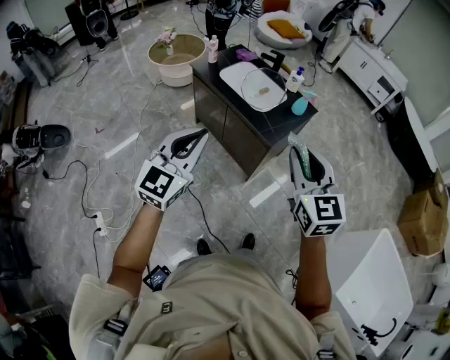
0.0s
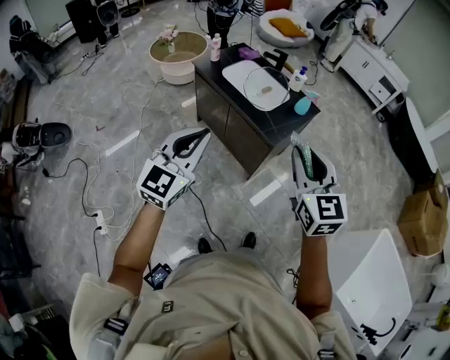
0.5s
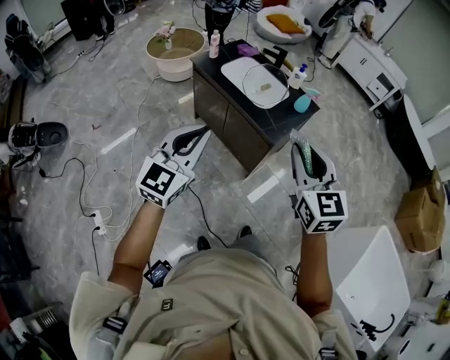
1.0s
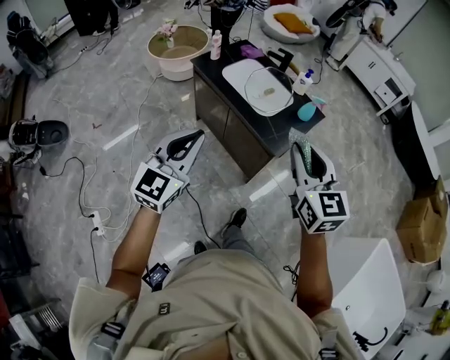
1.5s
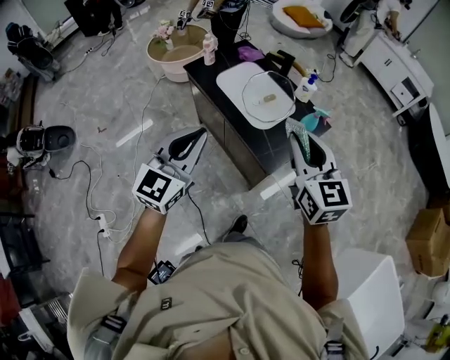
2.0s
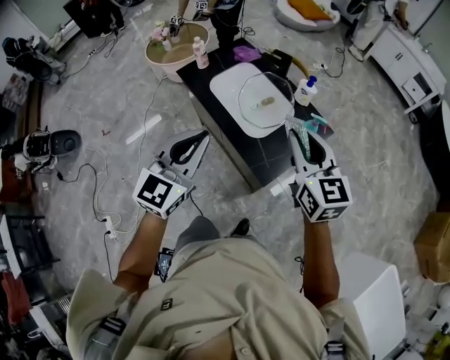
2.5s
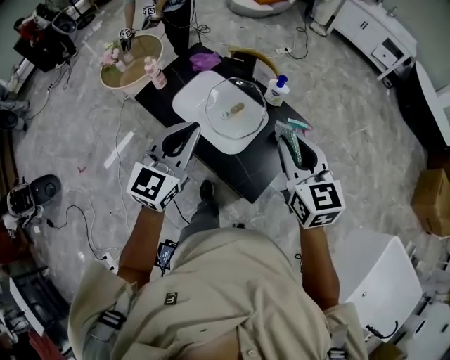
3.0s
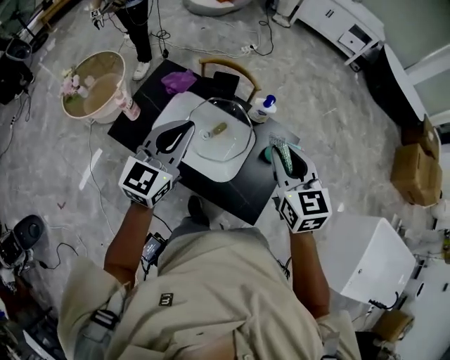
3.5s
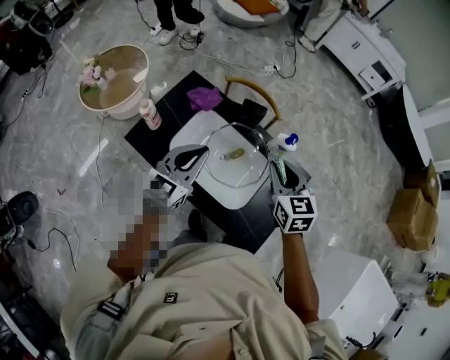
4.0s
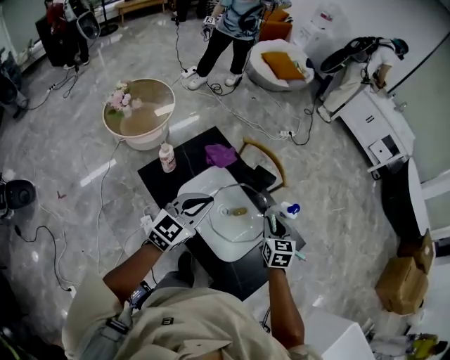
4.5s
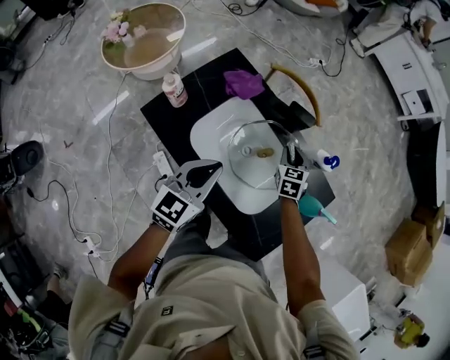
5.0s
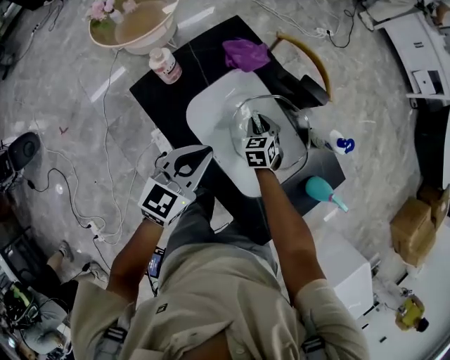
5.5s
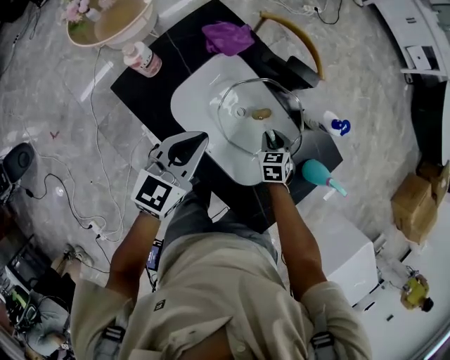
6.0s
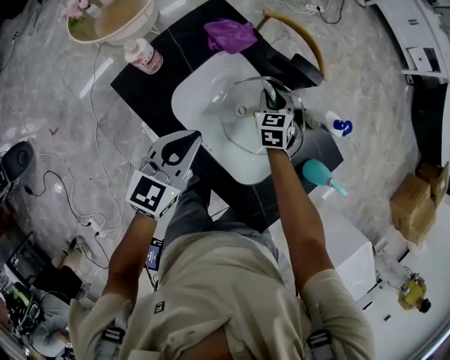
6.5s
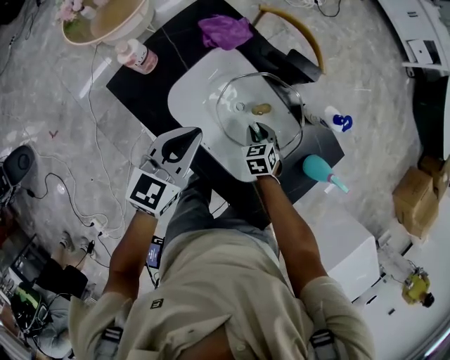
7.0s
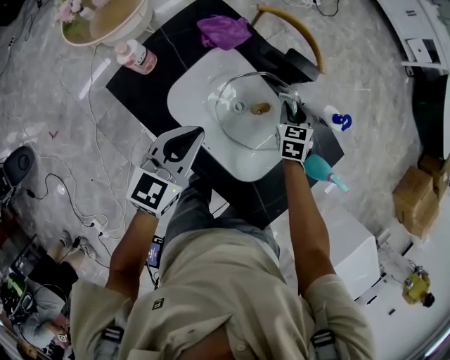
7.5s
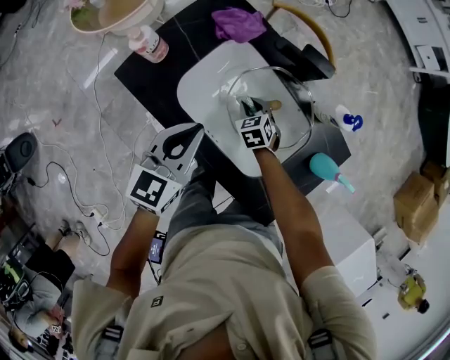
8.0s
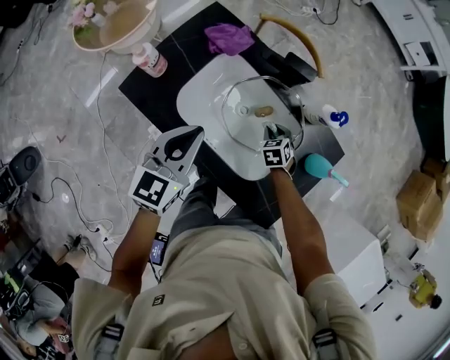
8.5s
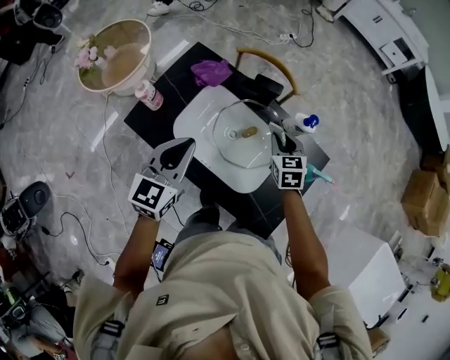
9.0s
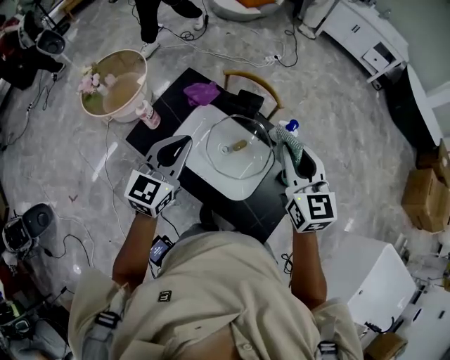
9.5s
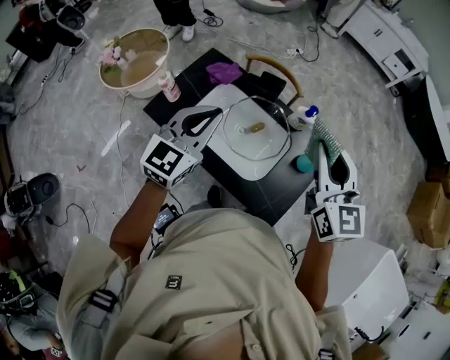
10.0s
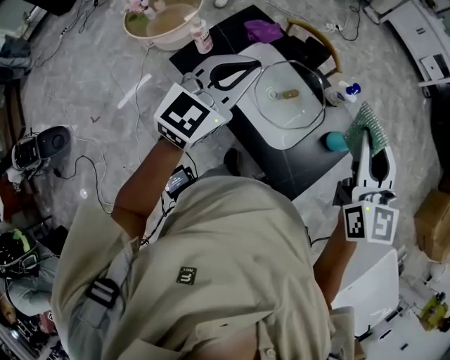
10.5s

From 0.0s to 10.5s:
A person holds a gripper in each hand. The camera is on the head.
From 0.0s to 2.0s: The grippers both shift forward by about 25 cm.
From 2.0s to 4.0s: The right gripper goes about 40 cm forward and downward, and turns by about 30 degrees; the left gripper is displaced forward by about 50 cm, and turns by approximately 30 degrees.
From 4.0s to 6.5s: The right gripper shifts about 35 cm downward and forward, and swivels approximately 20 degrees; the left gripper is displaced downward by roughly 15 cm.
From 6.5s to 8.5s: The right gripper moves left and right over roughly 15 cm, changing direction 2 times.
From 8.5s to 10.5s: The left gripper travels upward by roughly 20 cm, and turns by about 20 degrees, while the right gripper shifts some 50 cm upward, and tilts its fingers some 60 degrees upward.

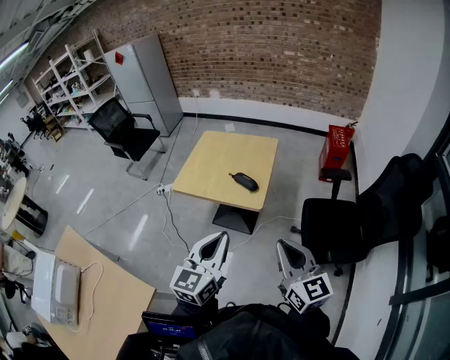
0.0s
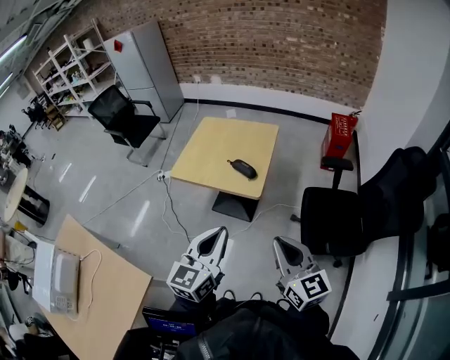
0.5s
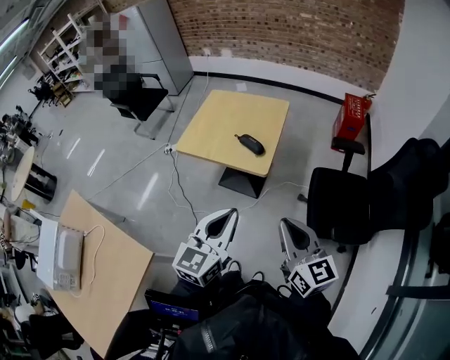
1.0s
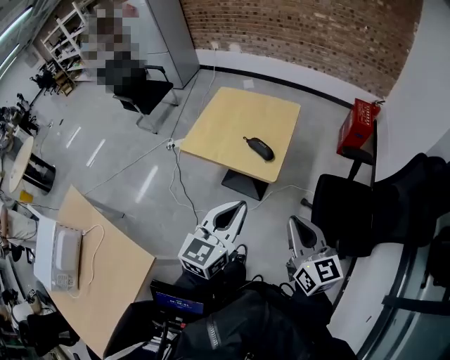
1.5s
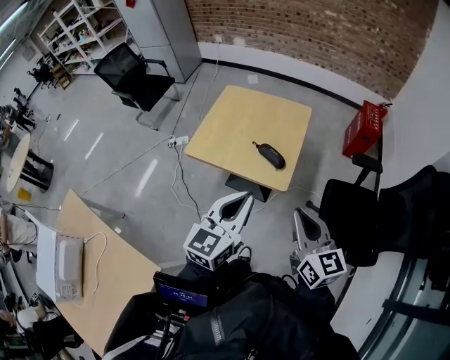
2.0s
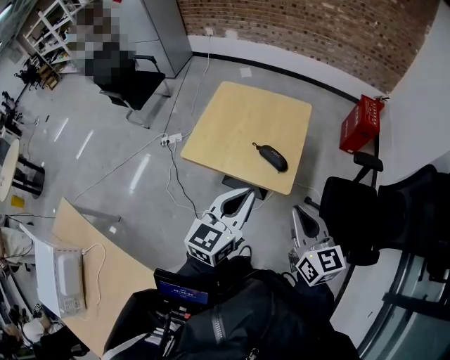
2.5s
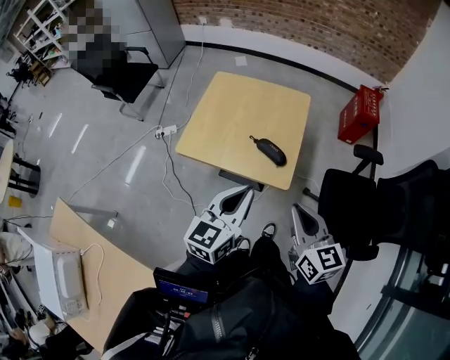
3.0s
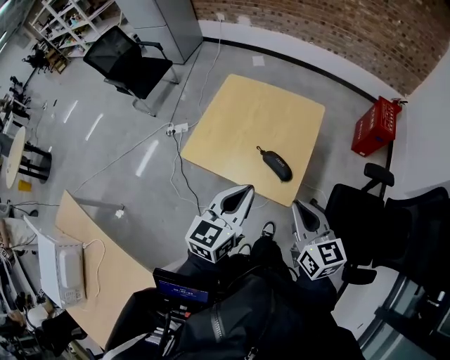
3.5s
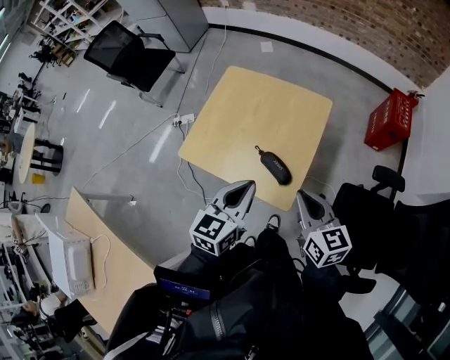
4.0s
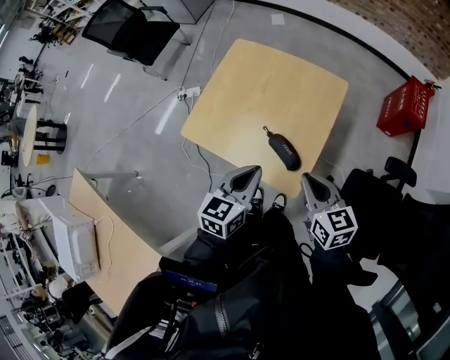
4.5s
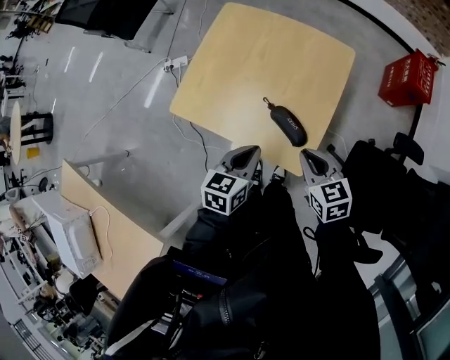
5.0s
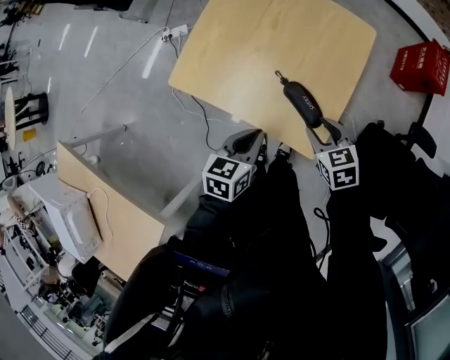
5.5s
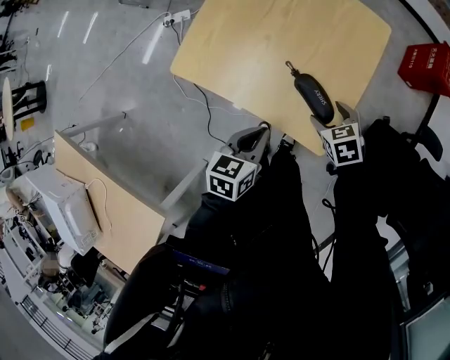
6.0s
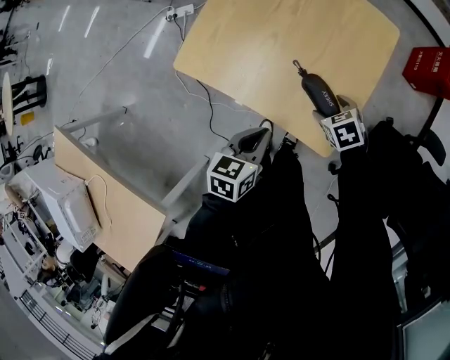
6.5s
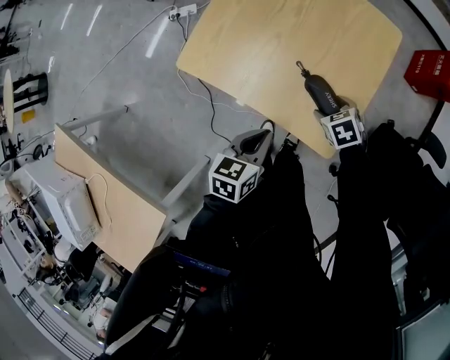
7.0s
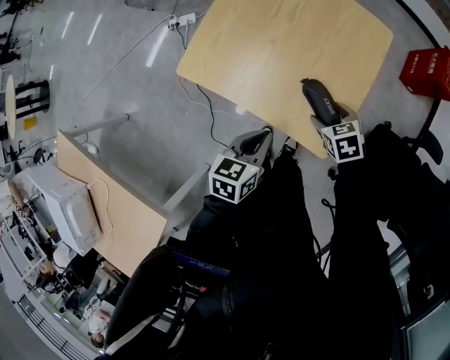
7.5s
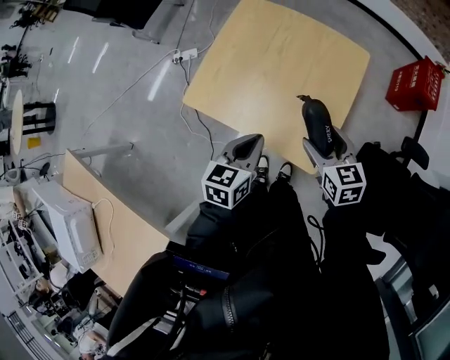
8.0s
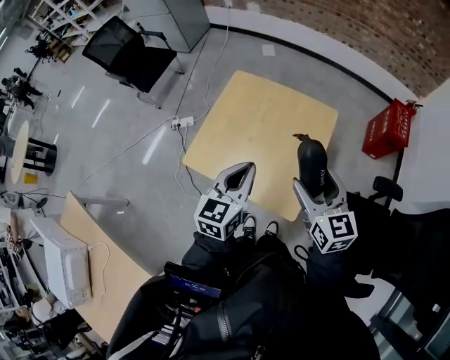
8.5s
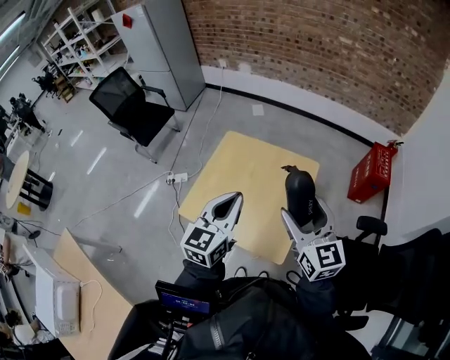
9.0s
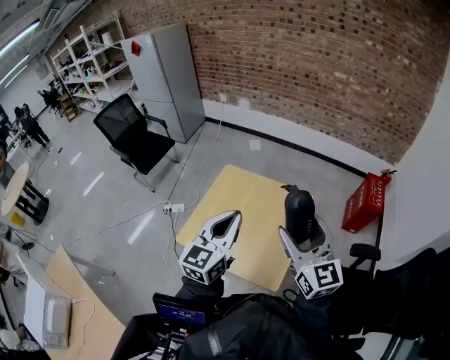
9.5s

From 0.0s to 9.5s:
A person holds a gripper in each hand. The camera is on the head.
From 0.0s to 2.0s: The two grippers go roughly 15 cm forward.
From 2.0s to 4.0s: The right gripper travels forward by roughly 25 cm, while the left gripper goes roughly 25 cm forward and downward.
From 4.0s to 5.5s: Both grippers move downward, approximately 20 cm. The left gripper rotates roughly 30 degrees; the right gripper tilts its fingers about 30 degrees downward, and opens.
From 5.5s to 7.5s: The right gripper is displaced downward by about 5 cm, and opens.
From 7.5s to 9.5s: Both grippers travel together upward, approximately 40 cm. The left gripper tips its fingers upward by about 40 degrees, while the right gripper points its fingers about 60 degrees further upward.

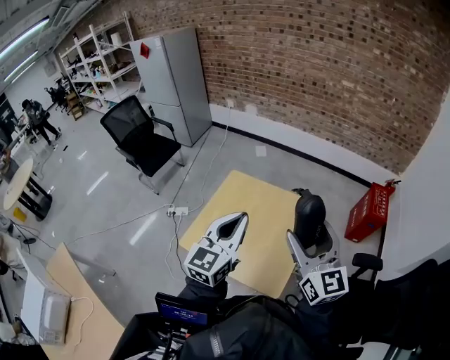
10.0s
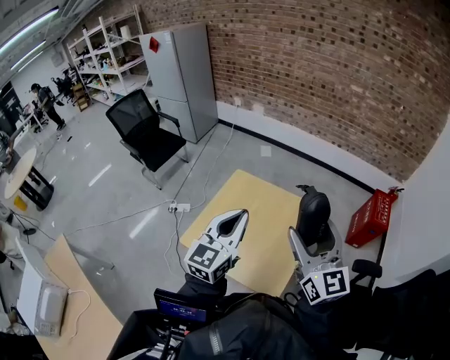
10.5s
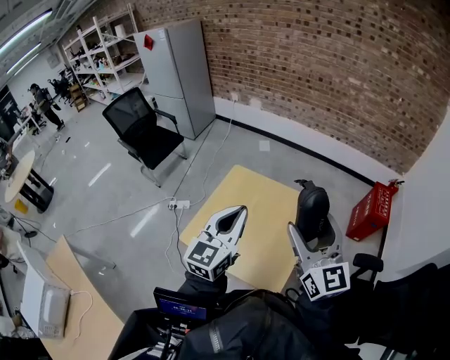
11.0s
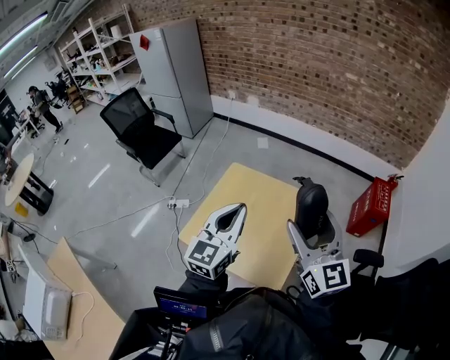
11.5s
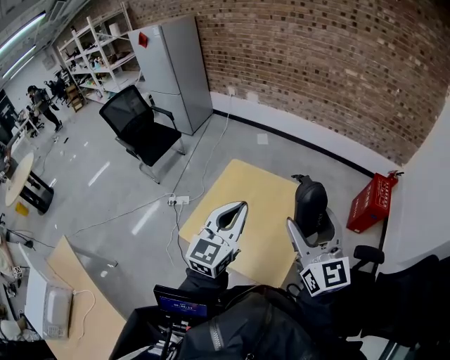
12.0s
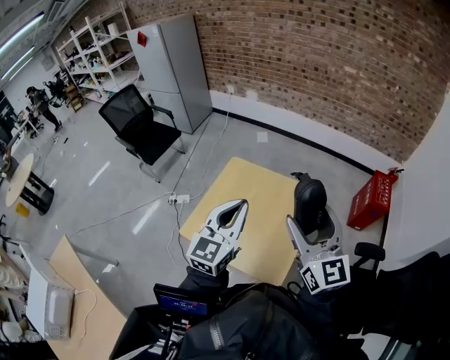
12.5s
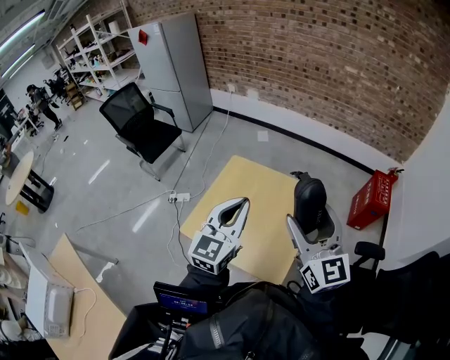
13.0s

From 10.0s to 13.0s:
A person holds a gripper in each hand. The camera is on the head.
From 10.0s to 11.5s: The grippers make only small movements.
From 11.5s to 13.0s: Both grippers stay put.

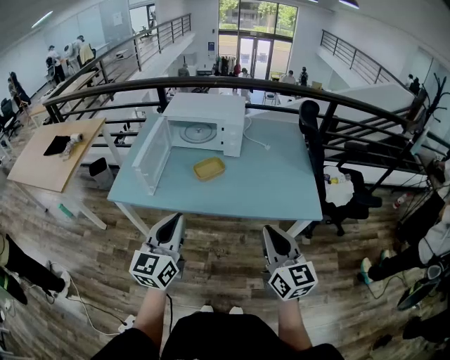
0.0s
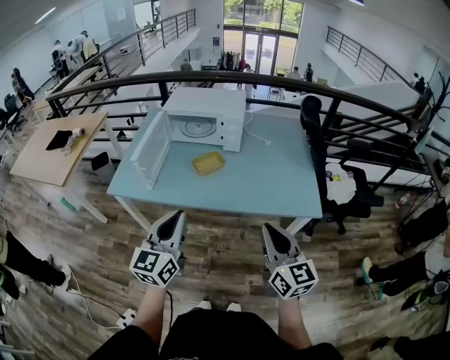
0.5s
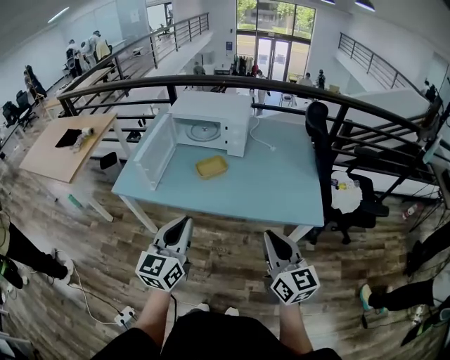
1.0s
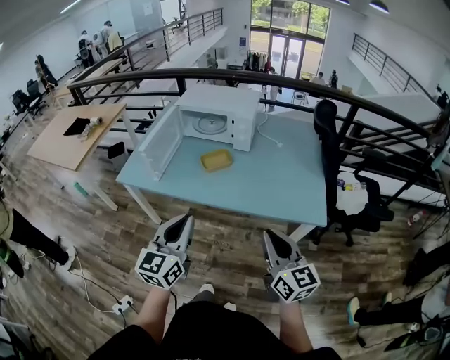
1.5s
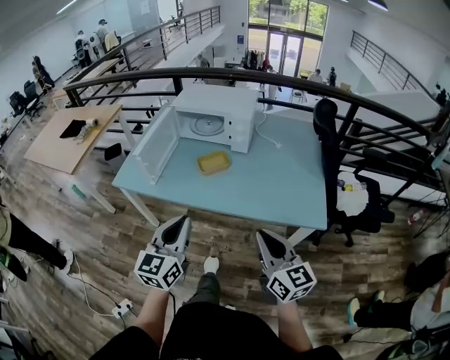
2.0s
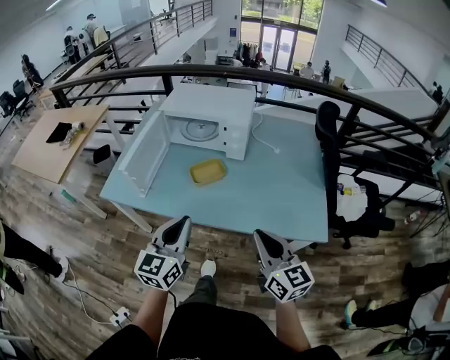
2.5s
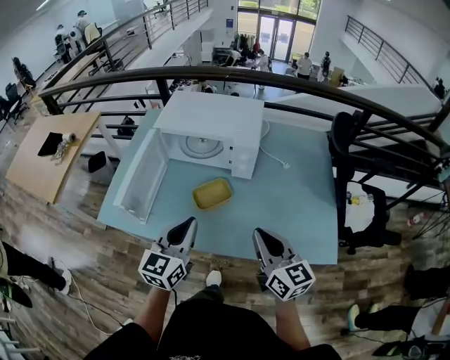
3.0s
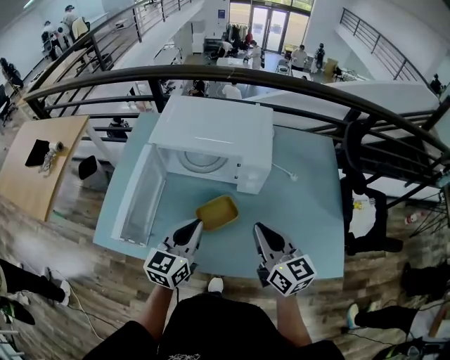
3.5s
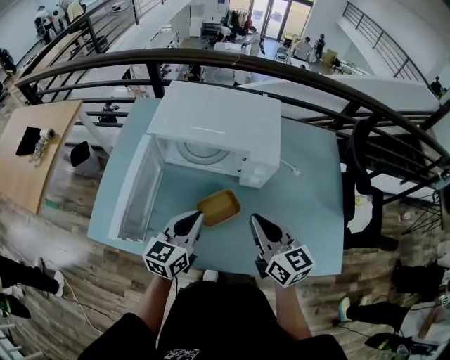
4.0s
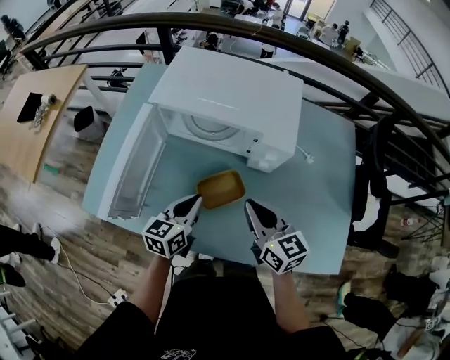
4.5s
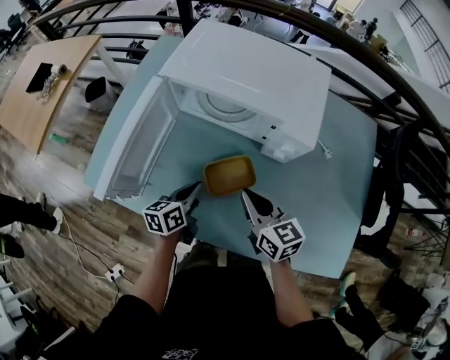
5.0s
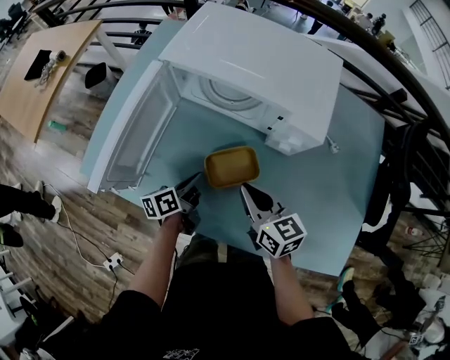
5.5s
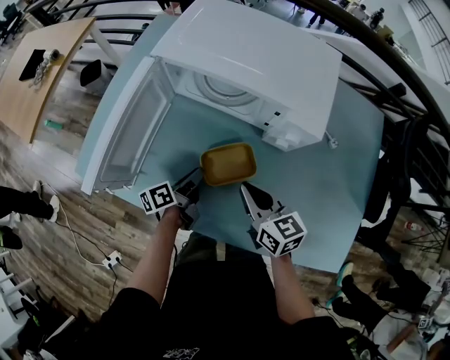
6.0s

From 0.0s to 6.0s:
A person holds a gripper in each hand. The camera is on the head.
From 0.0s to 2.0s: The left gripper heads to the right, covering some 10 cm; the right gripper shifts by some 5 cm.
From 2.0s to 4.0s: The two grippers travel together, forward, about 40 cm. The left gripper rotates roughly 20 degrees.
From 4.0s to 6.0s: Both grippers travel together downward, some 20 cm. The right gripper rotates some 20 degrees. Meanwhile the left gripper twists some 60 degrees counterclockwise, seen from behind.
